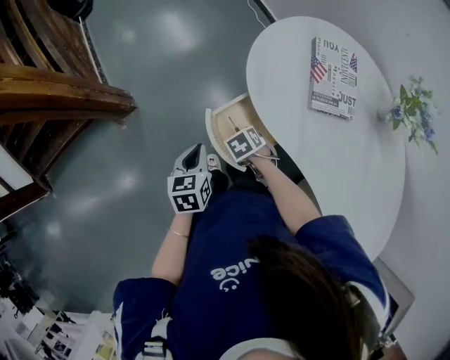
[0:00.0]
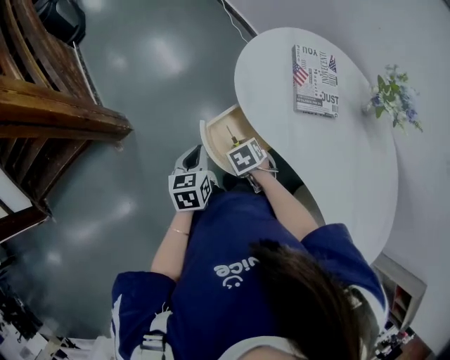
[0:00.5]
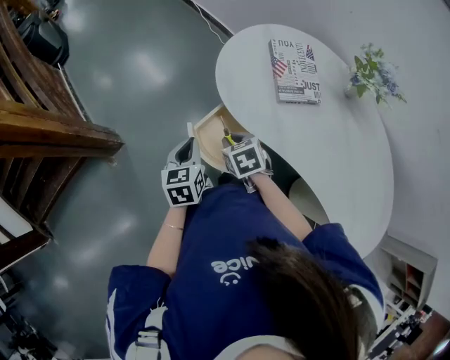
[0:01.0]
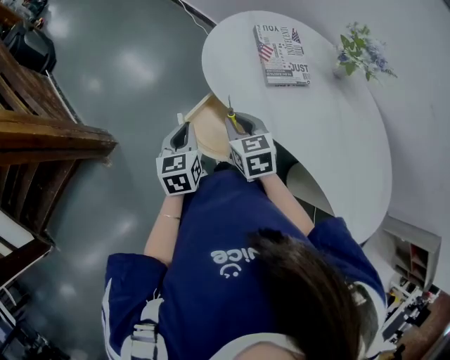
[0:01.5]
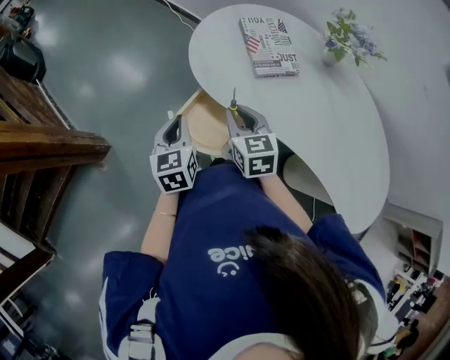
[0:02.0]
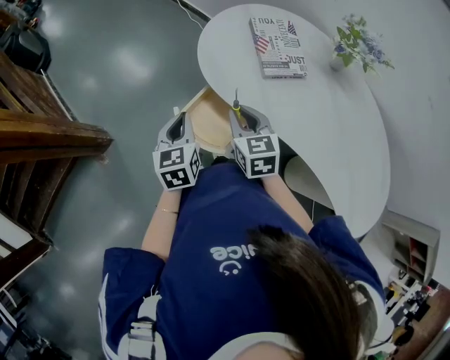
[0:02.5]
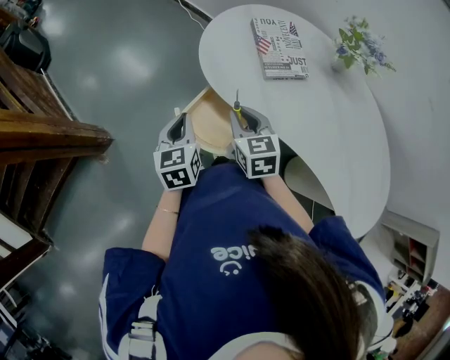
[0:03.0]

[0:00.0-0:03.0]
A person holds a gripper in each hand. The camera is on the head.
0.0 to 1.5 s: The left gripper is displaced upward by about 5 cm, while the right gripper shifts some 20 cm upward, and tilts its fingers some 40 degrees upward.
1.5 to 3.0 s: The grippers move only a little.

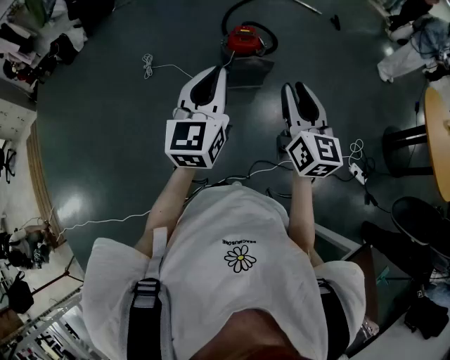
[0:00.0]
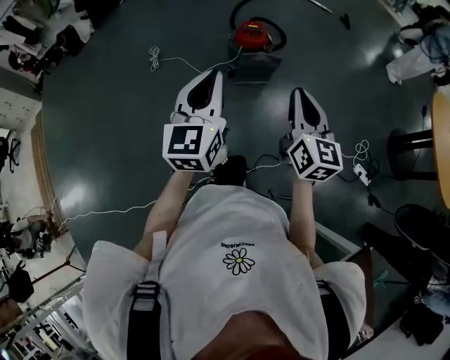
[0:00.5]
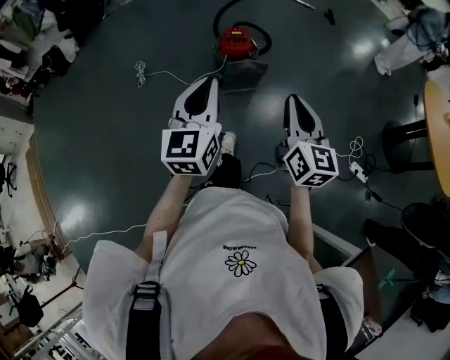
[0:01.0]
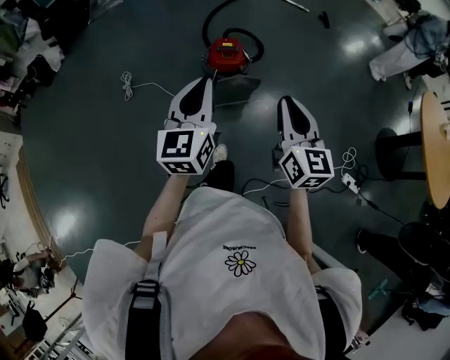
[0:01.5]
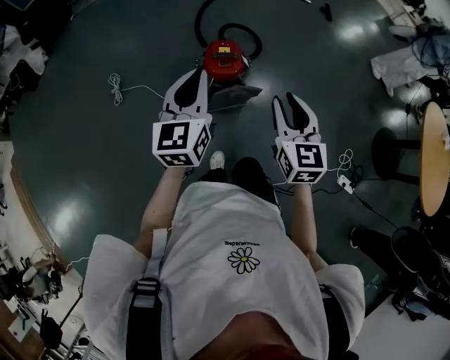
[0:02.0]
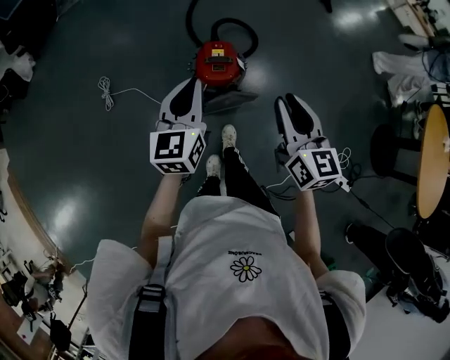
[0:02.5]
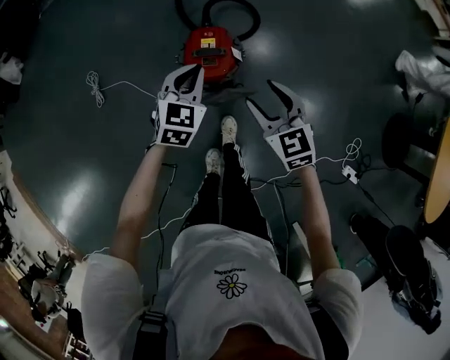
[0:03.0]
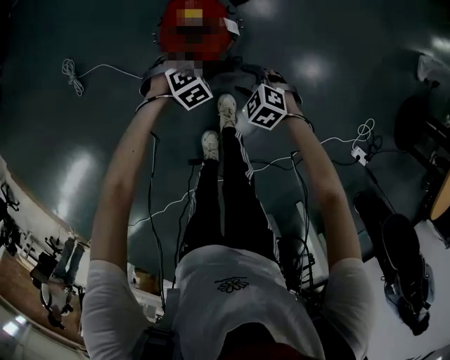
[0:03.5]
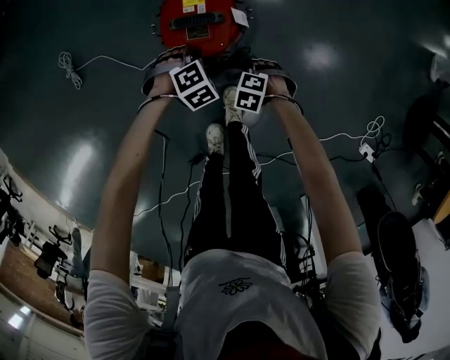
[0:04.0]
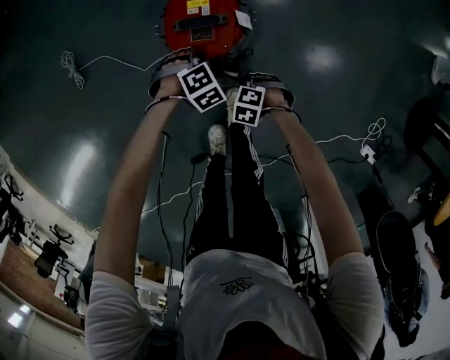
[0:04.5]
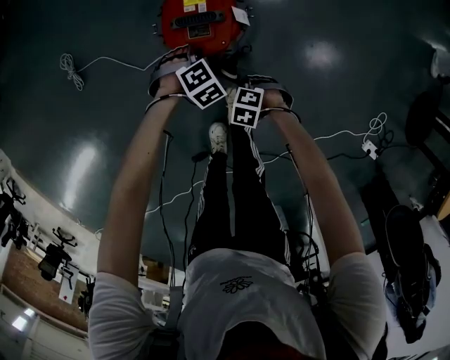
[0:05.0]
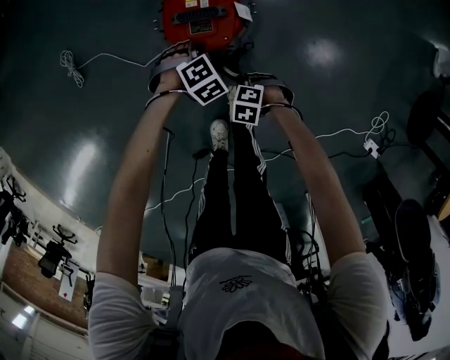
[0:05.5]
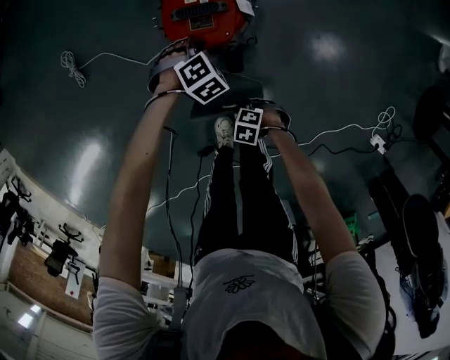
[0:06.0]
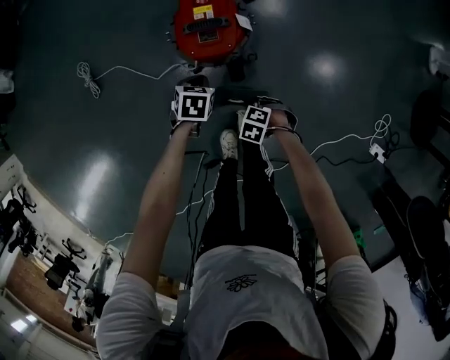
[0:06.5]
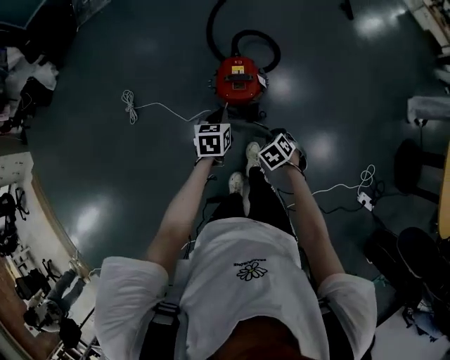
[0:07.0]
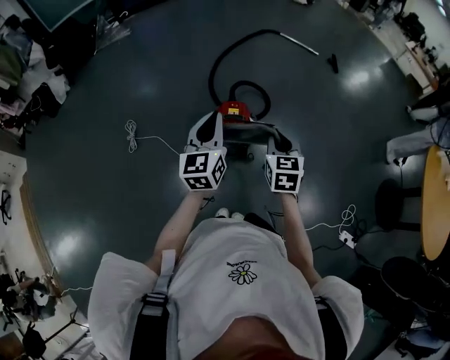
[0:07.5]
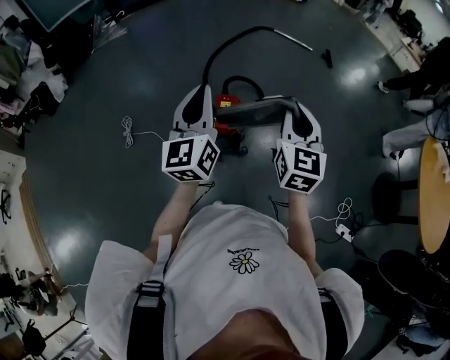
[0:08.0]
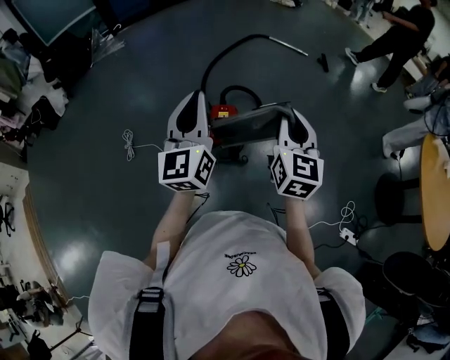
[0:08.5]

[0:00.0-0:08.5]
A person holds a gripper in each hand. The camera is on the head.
0.0 to 2.0 s: The two grippers go about 40 cm forward. The right gripper changes its angle by approximately 20 degrees, and closes, then reopens.
2.0 to 4.0 s: The grippers both shift downward by some 60 cm. The left gripper tips its fingers downward by approximately 70 degrees. Meanwhile the right gripper points its fingers roughly 70 degrees further downward, and opens its fingers.
4.0 to 6.5 s: The left gripper ends up some 10 cm from where it was, and rotates around the line of its fingers by about 60 degrees, counterclockwise from behind; the right gripper changes place by approximately 15 cm, and closes its fingers.
6.5 to 8.5 s: Both grippers travel together upward, some 70 cm. The left gripper tips its fingers upward by approximately 80 degrees; the right gripper tips its fingers upward by about 80 degrees.

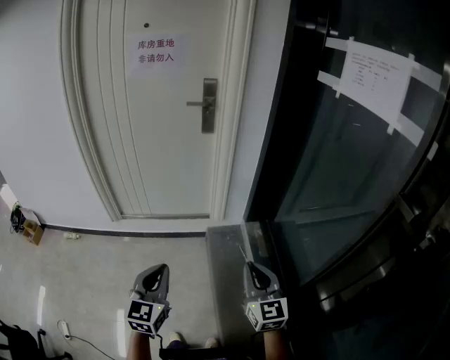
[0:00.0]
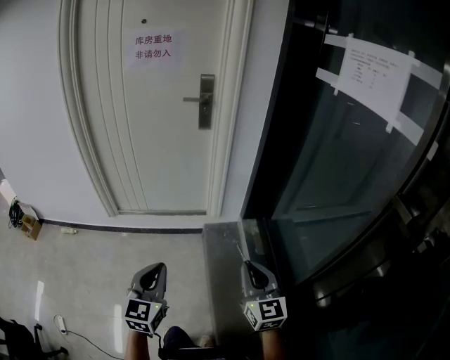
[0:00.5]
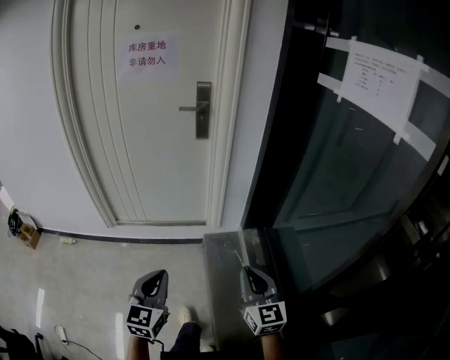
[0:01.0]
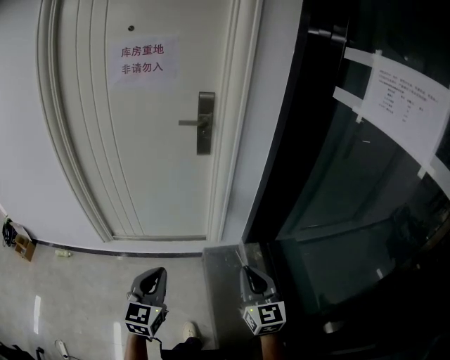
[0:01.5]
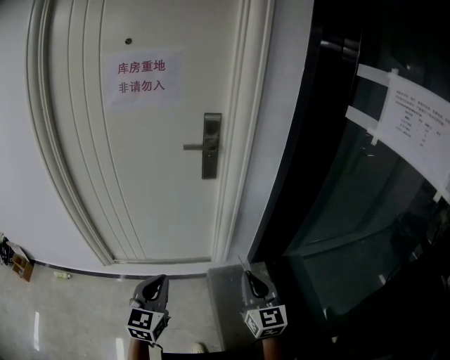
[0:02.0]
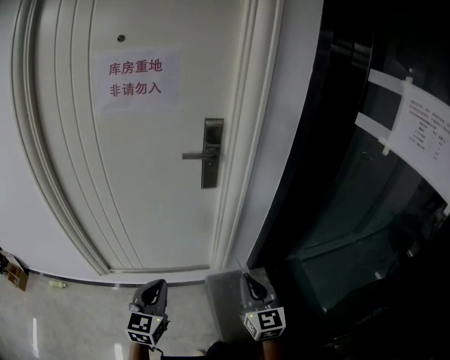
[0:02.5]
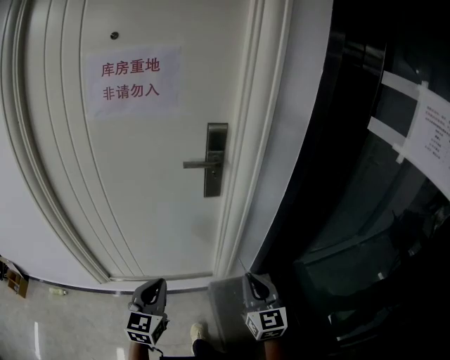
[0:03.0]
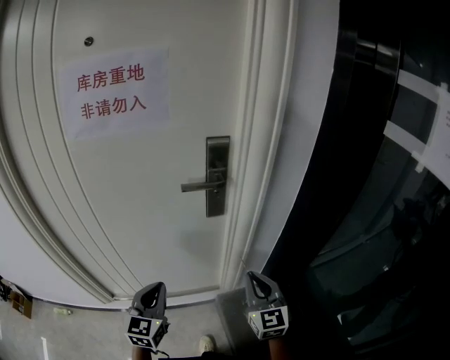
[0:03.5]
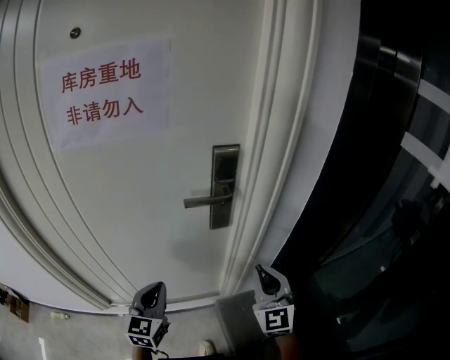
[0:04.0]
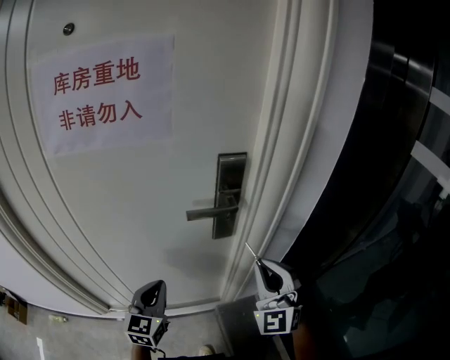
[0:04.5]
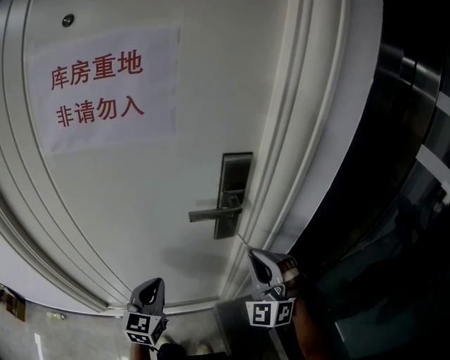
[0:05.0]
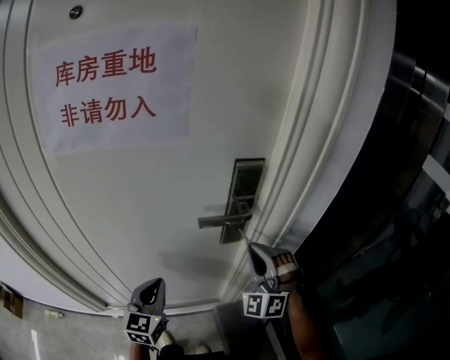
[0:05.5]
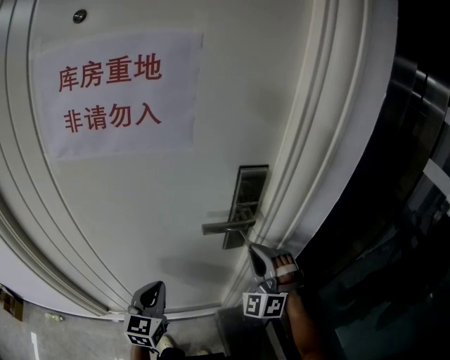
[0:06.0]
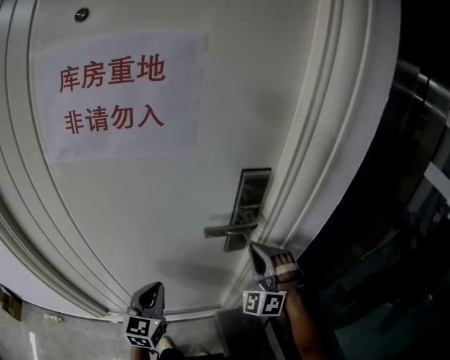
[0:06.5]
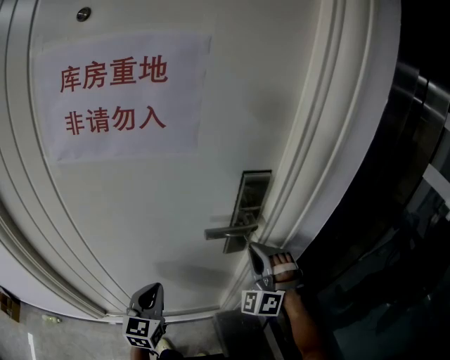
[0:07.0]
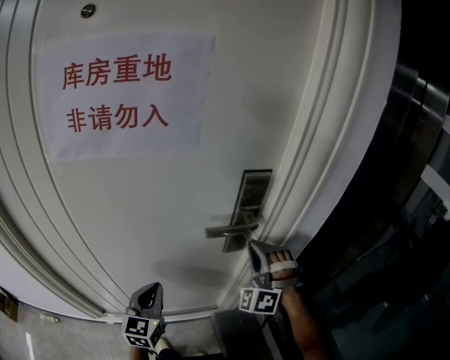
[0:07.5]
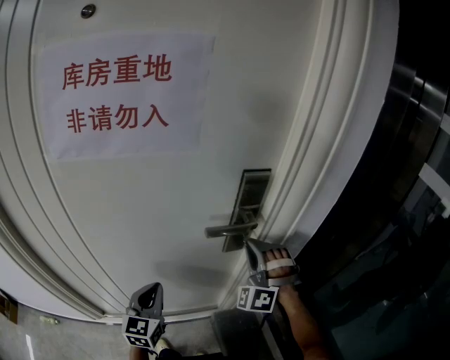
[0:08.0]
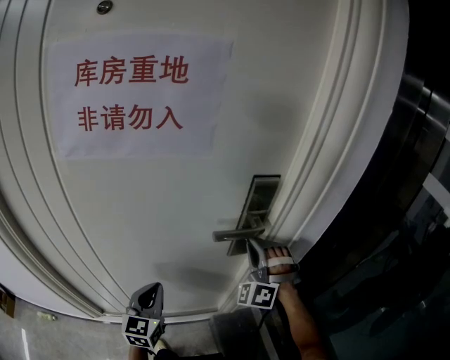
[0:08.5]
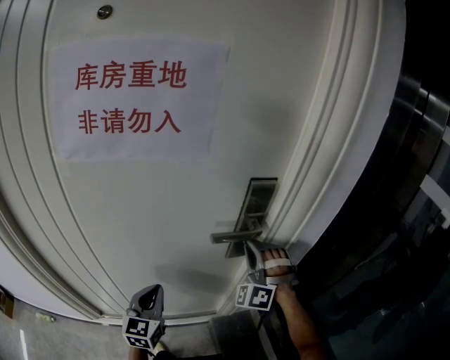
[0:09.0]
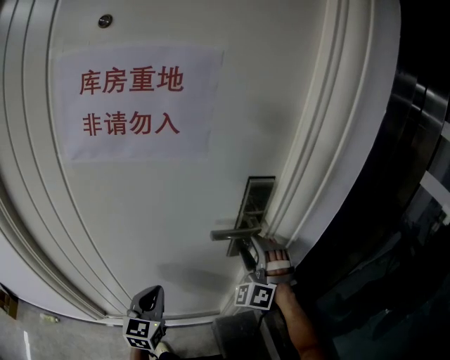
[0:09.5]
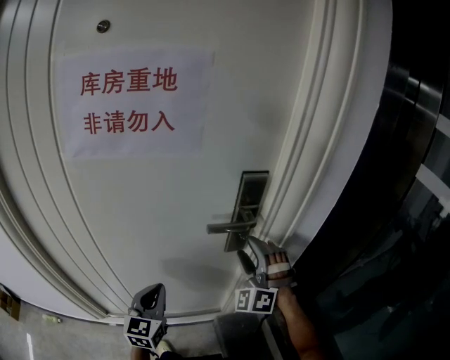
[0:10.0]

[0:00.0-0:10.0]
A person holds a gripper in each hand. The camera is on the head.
0.0 to 2.0 s: The two grippers go some 25 cm forward.
2.0 to 4.0 s: The grippers both shift forward by approximately 30 cm. The right gripper swivels about 20 degrees.
4.0 to 6.0 s: The left gripper is displaced forward by some 10 cm. The right gripper heads forward and to the left, covering about 15 cm, and rotates around the line of its fingers by about 50 degrees, counterclockwise from behind.
6.0 to 8.0 s: The grippers move only a little.
8.0 to 10.0 s: The right gripper opens up.

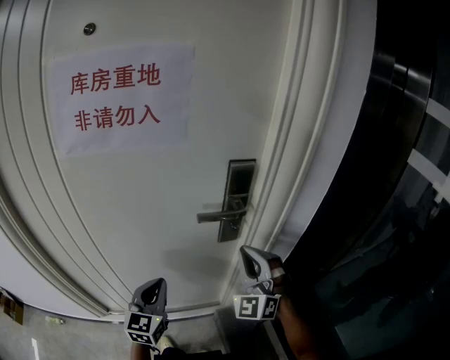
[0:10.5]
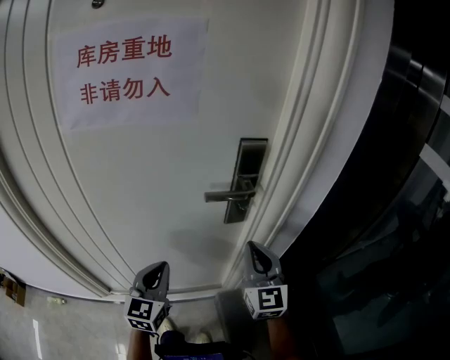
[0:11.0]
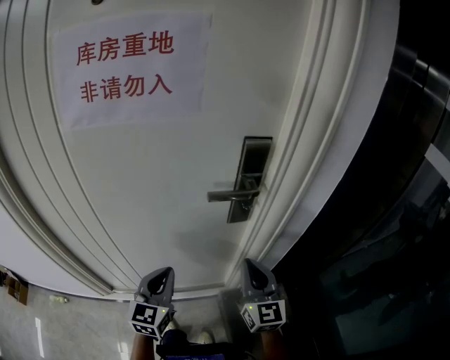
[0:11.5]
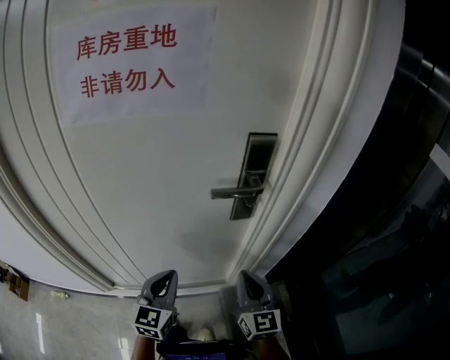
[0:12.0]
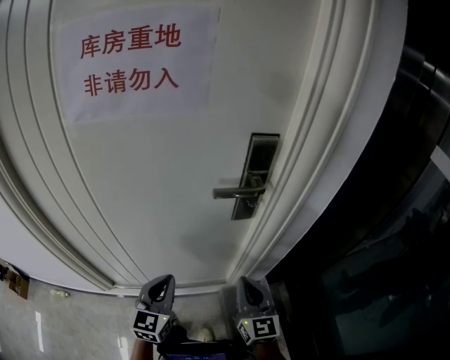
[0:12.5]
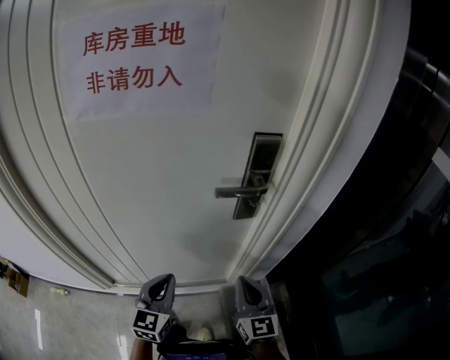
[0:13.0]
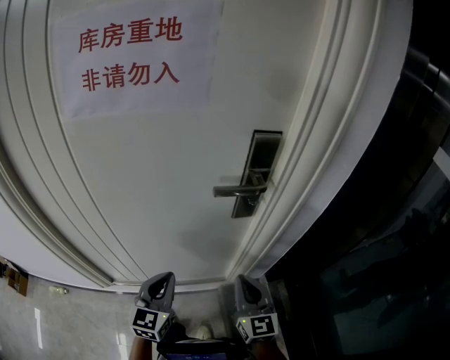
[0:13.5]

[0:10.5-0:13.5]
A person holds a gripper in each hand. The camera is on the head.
10.5 to 12.0 s: The right gripper goes some 15 cm downward and backward, and twists some 60 degrees clockwise, seen from behind.
12.0 to 13.5 s: There are only small adjustments of the grippers.

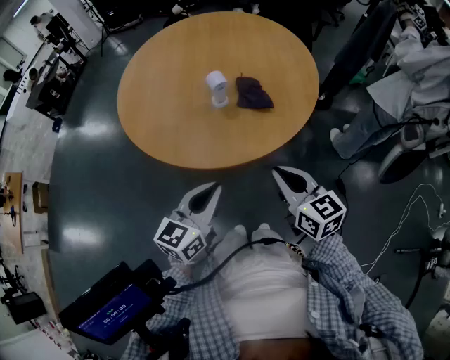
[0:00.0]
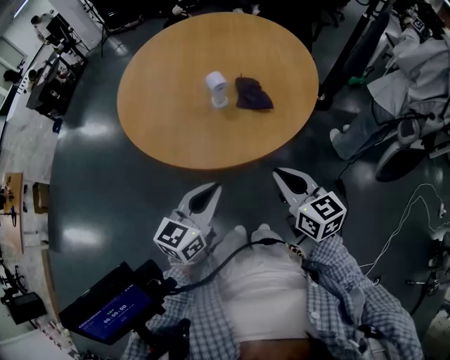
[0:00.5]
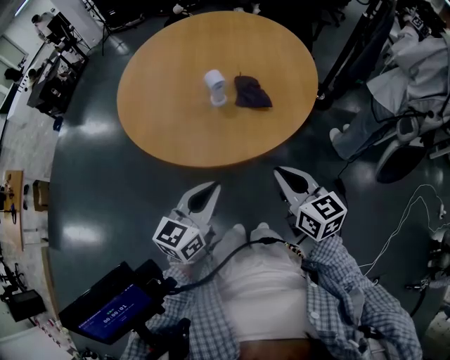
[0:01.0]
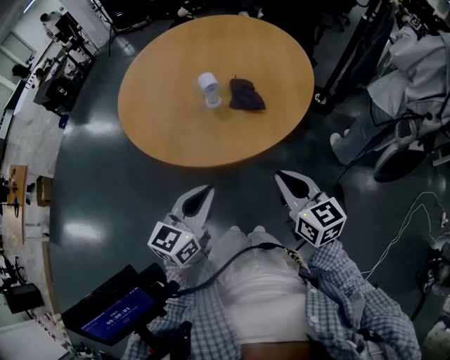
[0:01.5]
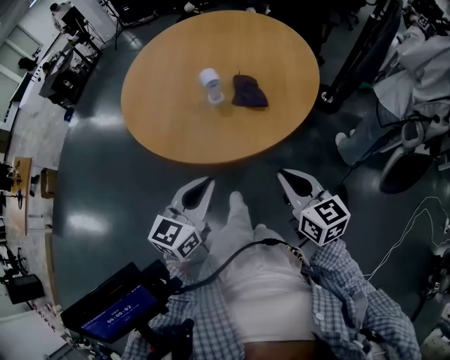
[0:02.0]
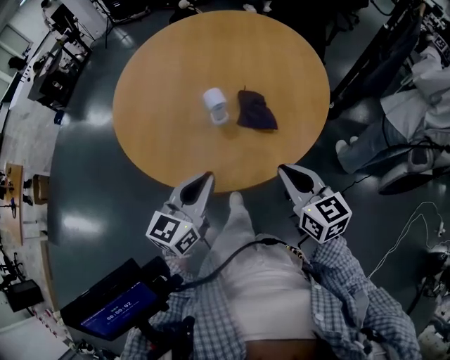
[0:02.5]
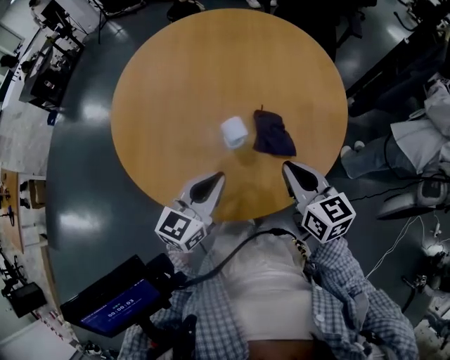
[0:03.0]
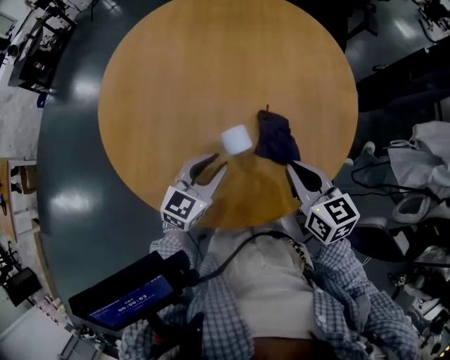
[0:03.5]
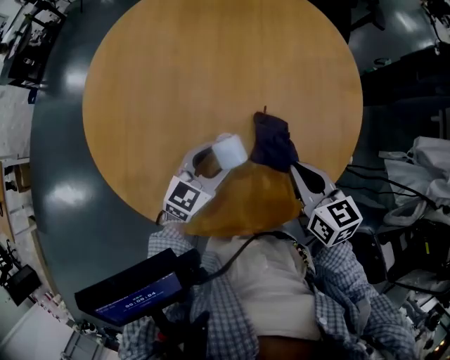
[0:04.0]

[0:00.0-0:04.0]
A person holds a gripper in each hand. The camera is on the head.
0.0 to 2.0 s: The right gripper is displaced to the right by roughly 5 cm.
2.0 to 4.0 s: The right gripper heads forward, covering roughly 25 cm. The left gripper is displaced forward and downward by about 35 cm, and opens up.
